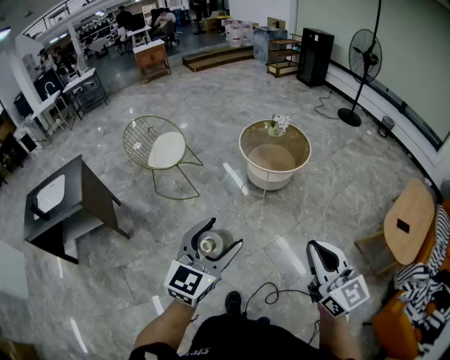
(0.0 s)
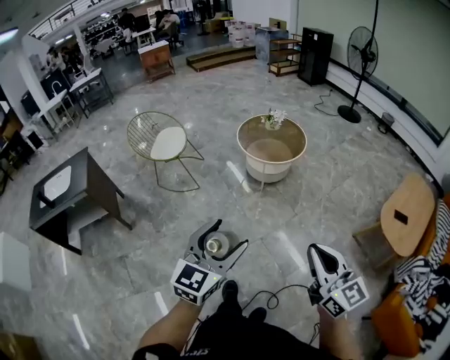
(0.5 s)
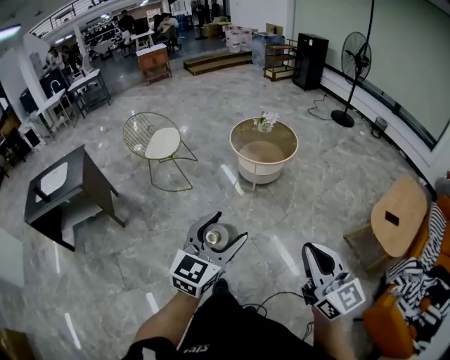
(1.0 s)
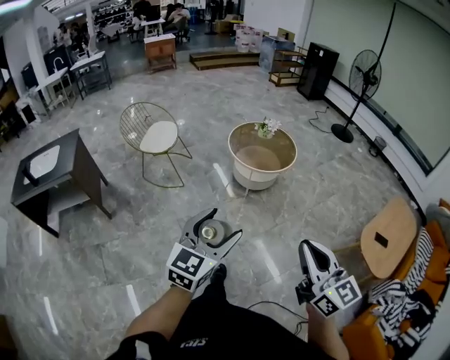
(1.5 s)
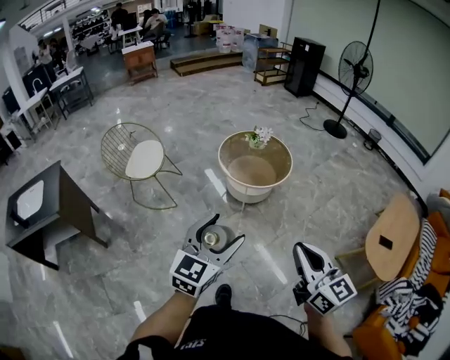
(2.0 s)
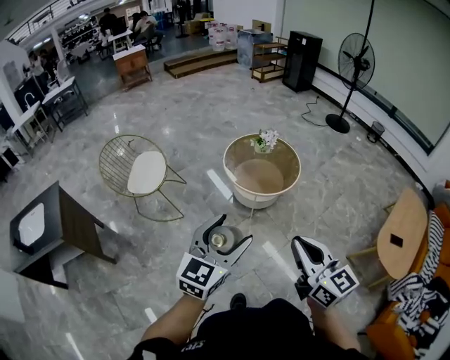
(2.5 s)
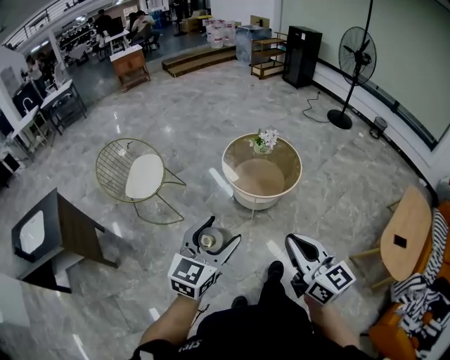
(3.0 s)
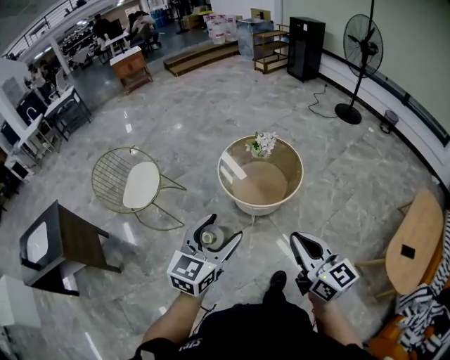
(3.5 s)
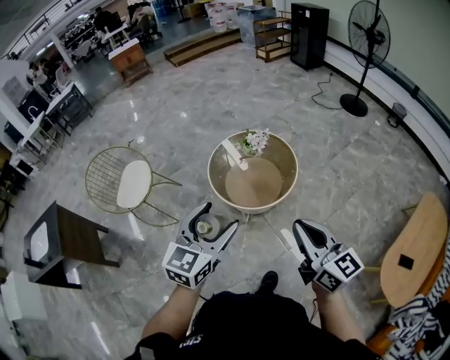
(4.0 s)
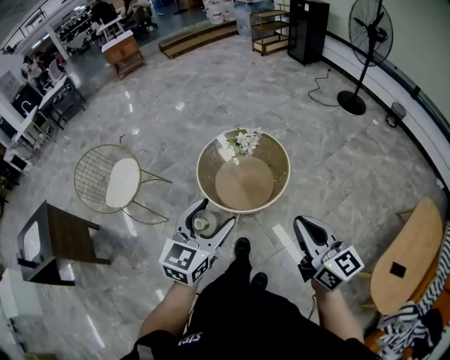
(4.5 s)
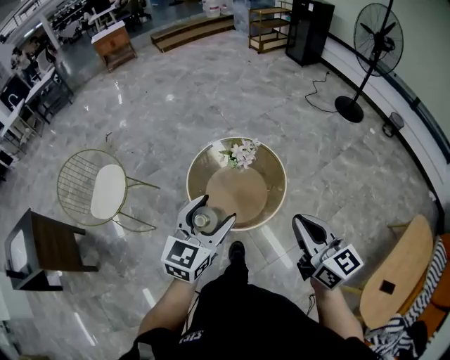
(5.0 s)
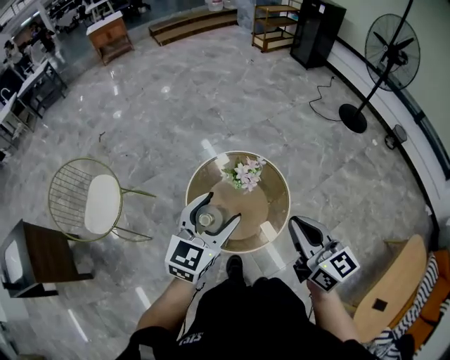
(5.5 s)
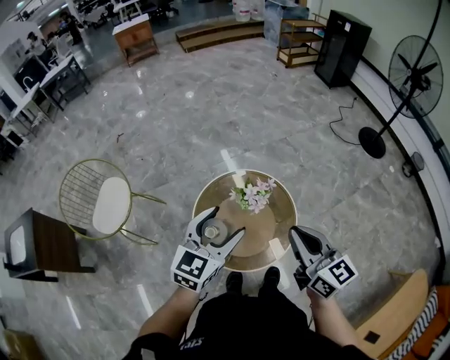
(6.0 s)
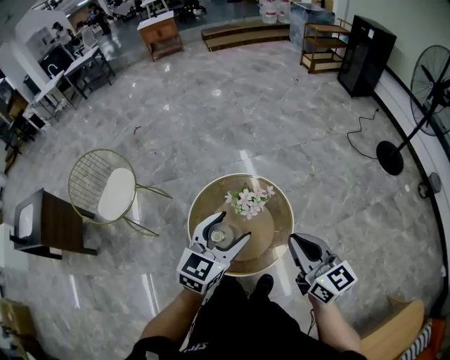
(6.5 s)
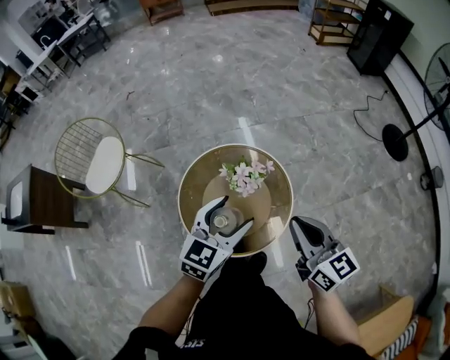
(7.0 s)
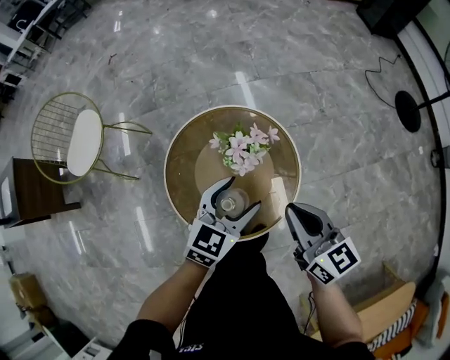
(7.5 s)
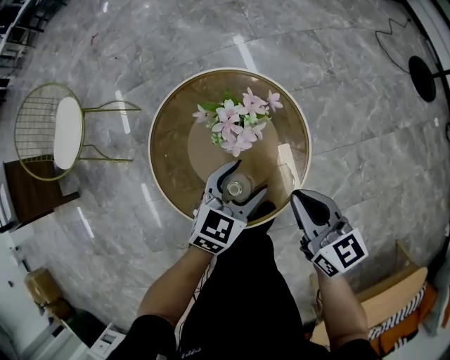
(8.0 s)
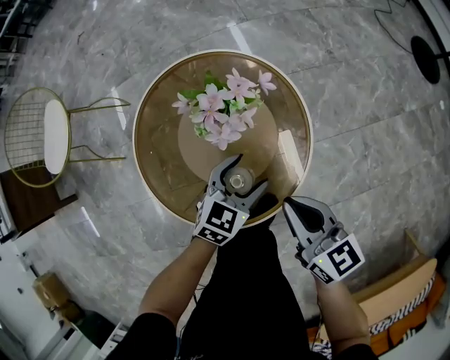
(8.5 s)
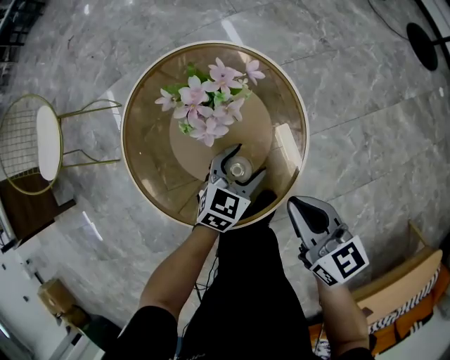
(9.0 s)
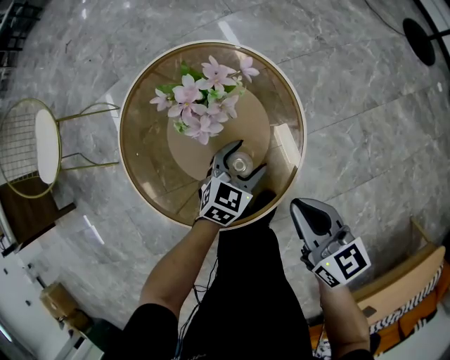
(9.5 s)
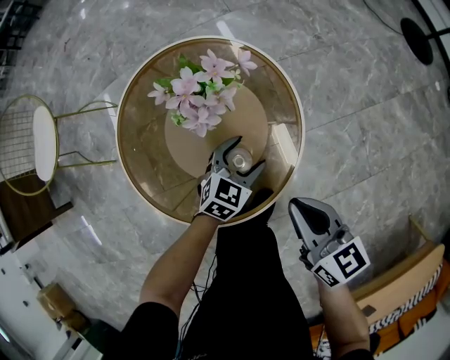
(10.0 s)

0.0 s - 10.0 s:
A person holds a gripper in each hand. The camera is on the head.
0.0 s - 2.0 s: The two grippers go about 10 cm forward and to the right.
2.0 s - 4.0 s: The pair of grippers is taken forward and to the right, approximately 40 cm.
4.0 s - 6.0 s: The pair of grippers is taken forward, some 40 cm.
6.0 s - 8.0 s: The right gripper goes roughly 35 cm downward, and swivels some 20 degrees, while the left gripper moves downward and to the right, approximately 40 cm, and rotates about 20 degrees.
8.0 s - 10.0 s: The left gripper shifts approximately 20 cm downward. The right gripper travels downward and backward by roughly 15 cm.

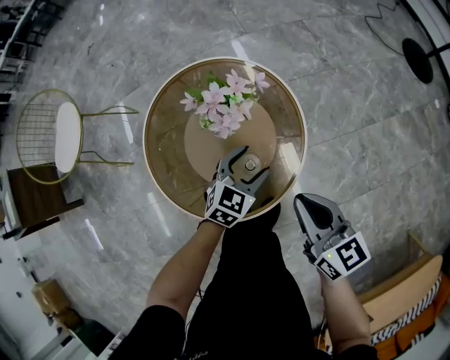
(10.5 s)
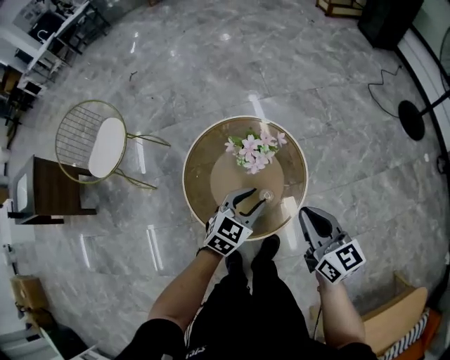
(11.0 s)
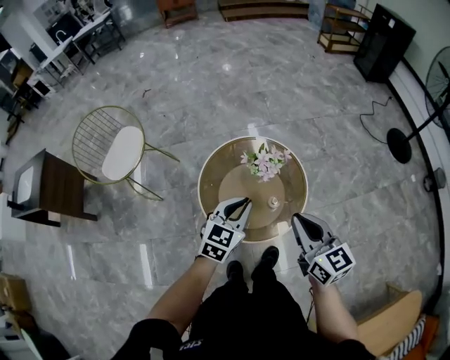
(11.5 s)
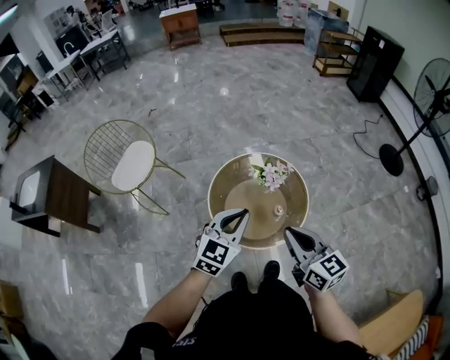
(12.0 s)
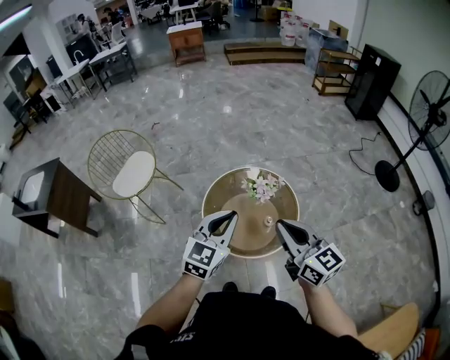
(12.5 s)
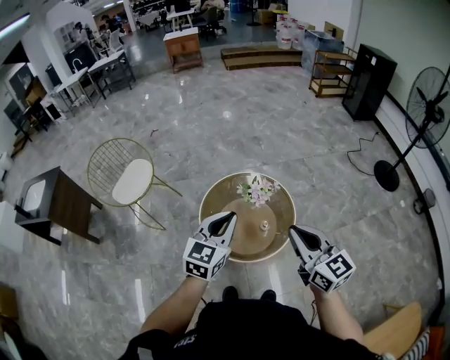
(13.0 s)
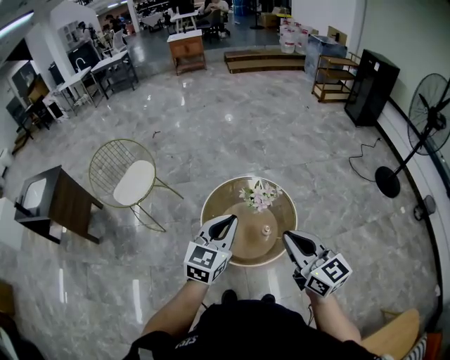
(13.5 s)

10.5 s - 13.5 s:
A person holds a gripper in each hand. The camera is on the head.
10.5 s - 12.0 s: The left gripper heads upward and to the left, covering roughly 50 cm, rotates some 20 degrees, and closes; the right gripper heads upward, to the left and backward, covering roughly 40 cm.
12.0 s - 13.5 s: The left gripper heads upward, covering roughly 5 cm. Meanwhile the right gripper heads upward and to the right, covering some 10 cm.

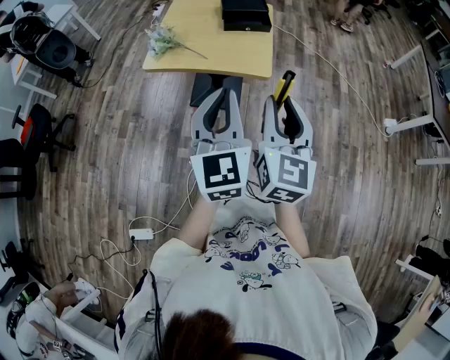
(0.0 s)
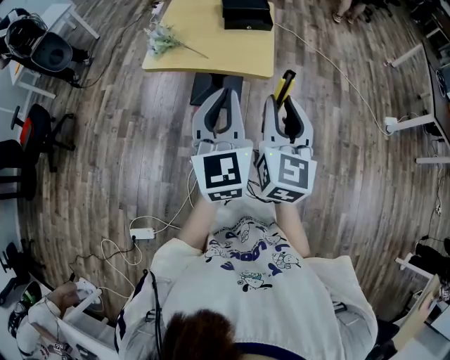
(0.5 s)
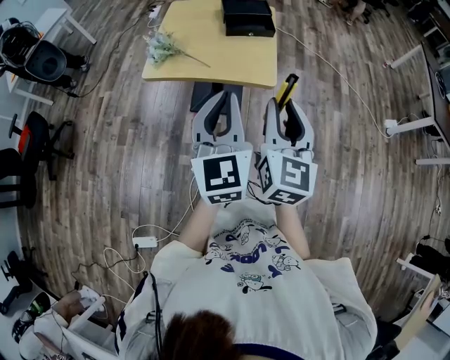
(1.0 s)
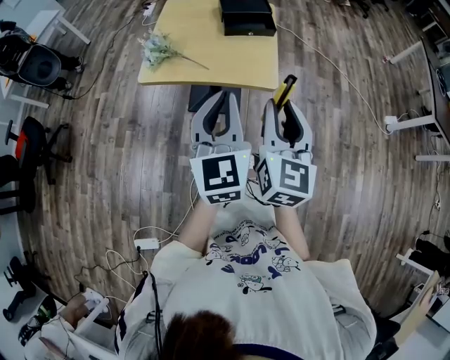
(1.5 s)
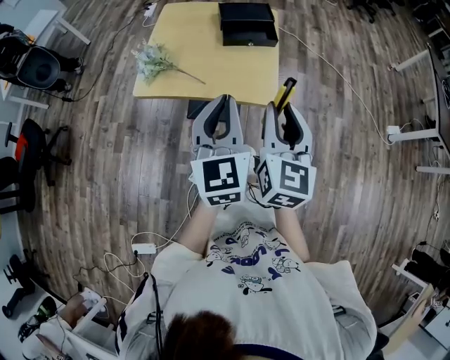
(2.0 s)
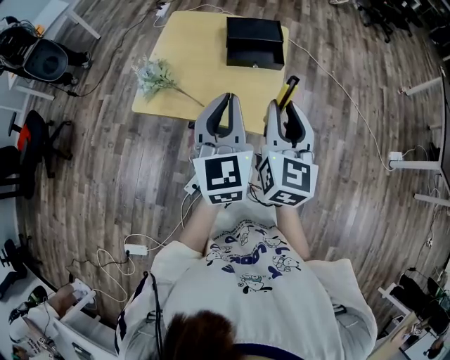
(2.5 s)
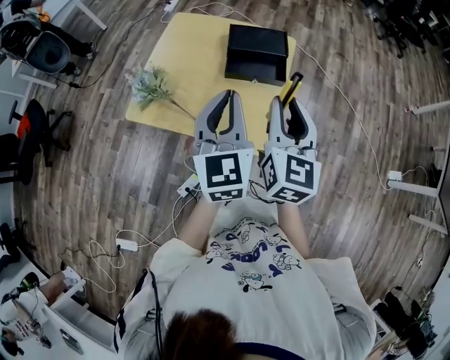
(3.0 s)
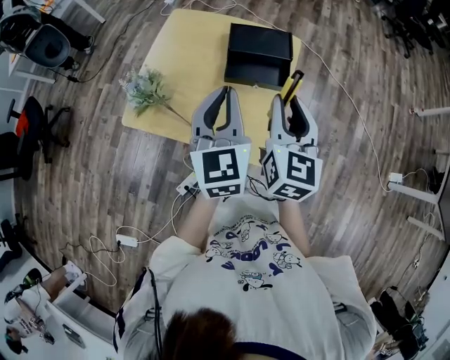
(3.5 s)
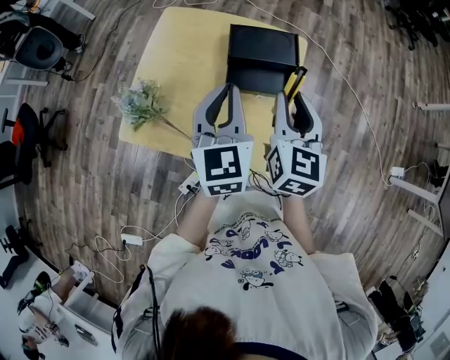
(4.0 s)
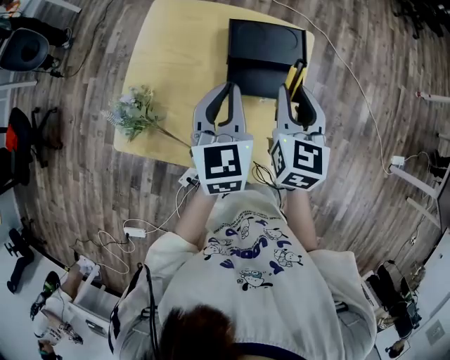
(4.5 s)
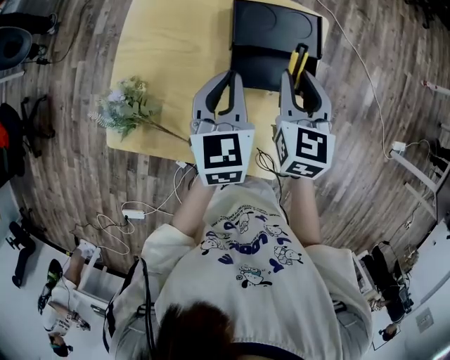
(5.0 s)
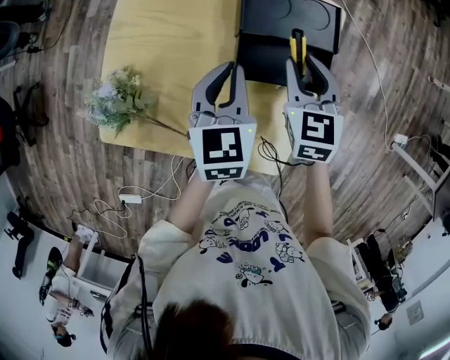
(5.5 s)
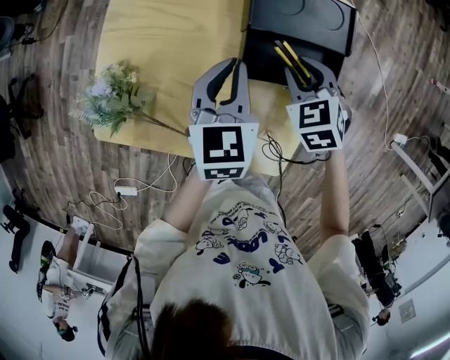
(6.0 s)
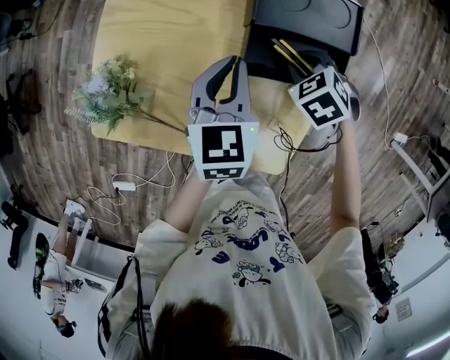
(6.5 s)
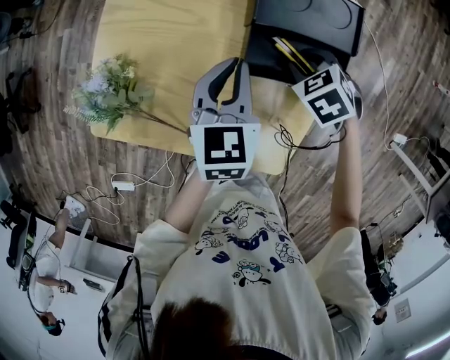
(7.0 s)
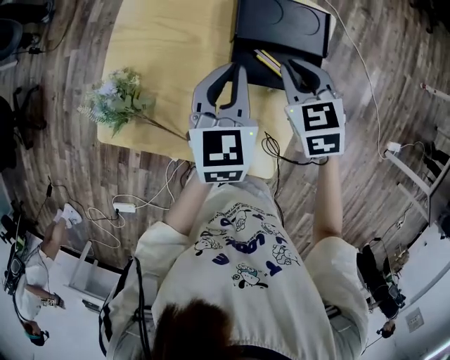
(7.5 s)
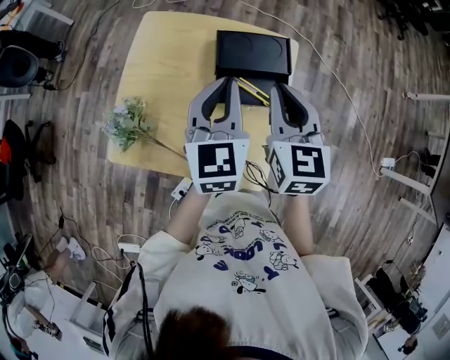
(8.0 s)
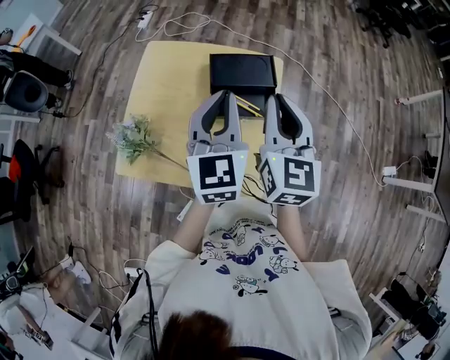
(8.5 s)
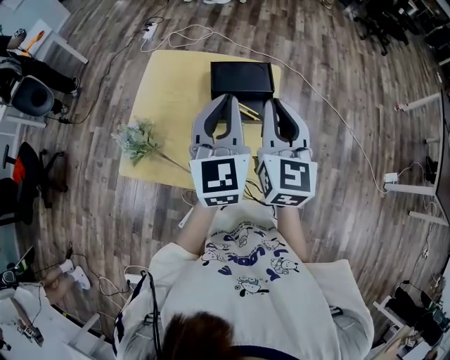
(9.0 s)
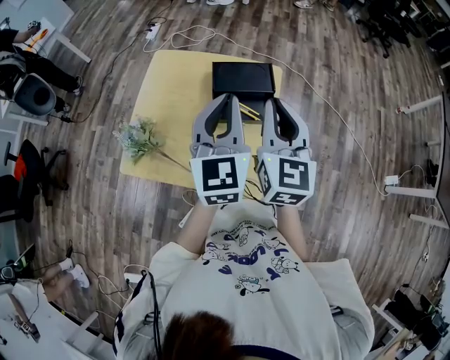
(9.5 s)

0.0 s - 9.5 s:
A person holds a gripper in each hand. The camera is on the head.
0.0 s - 2.0 s: Both grippers travel together forward, approximately 15 cm.
2.0 s - 4.0 s: The two grippers go some 35 cm forward.
4.0 s - 5.5 s: The two grippers go roughly 20 cm downward and forward. The right gripper swivels roughly 30 degrees.
5.5 s - 7.5 s: The right gripper goes downward and returns, roughly 10 cm each way.
7.5 s - 9.5 s: The right gripper travels upward and backward by about 25 cm, and tips its fingers upward by about 40 degrees. The left gripper goes roughly 20 cm upward, and changes its angle by about 30 degrees.

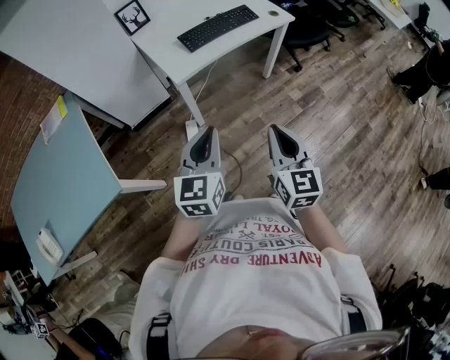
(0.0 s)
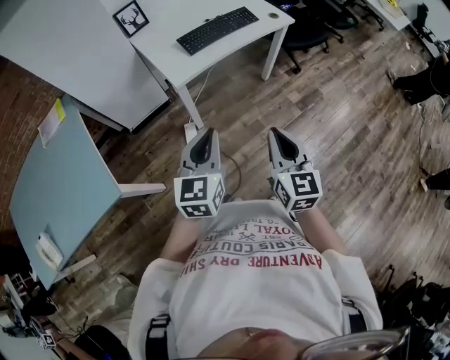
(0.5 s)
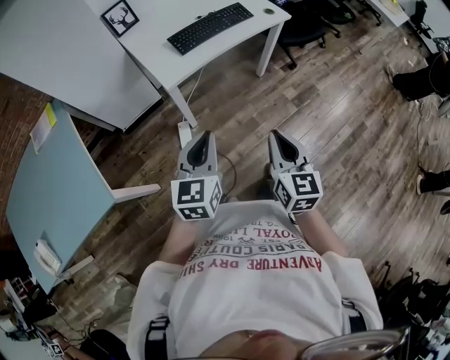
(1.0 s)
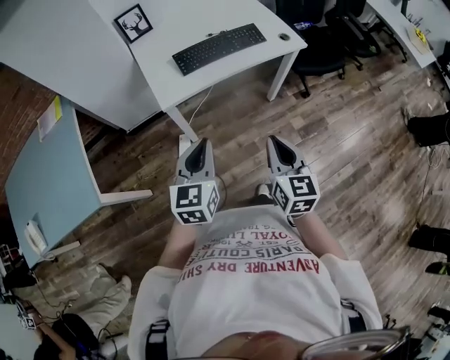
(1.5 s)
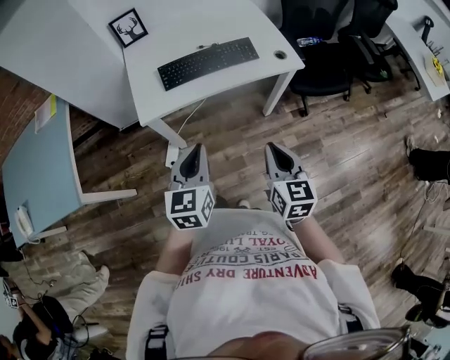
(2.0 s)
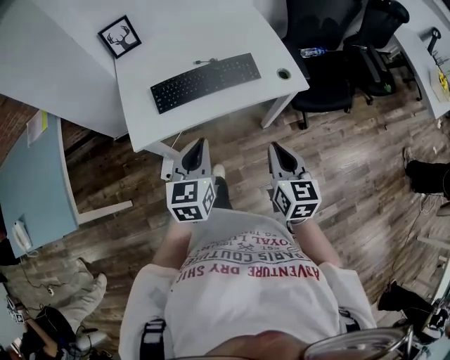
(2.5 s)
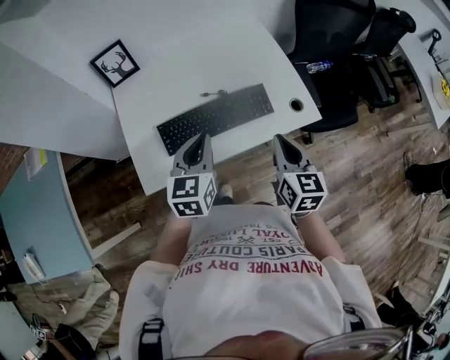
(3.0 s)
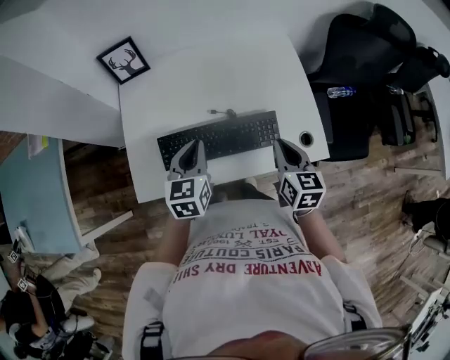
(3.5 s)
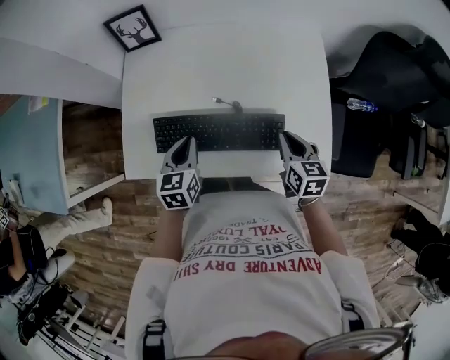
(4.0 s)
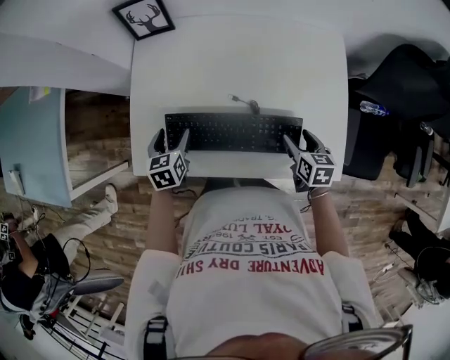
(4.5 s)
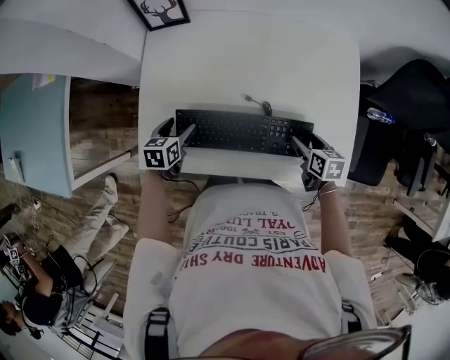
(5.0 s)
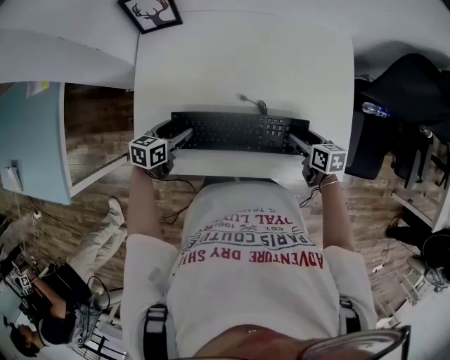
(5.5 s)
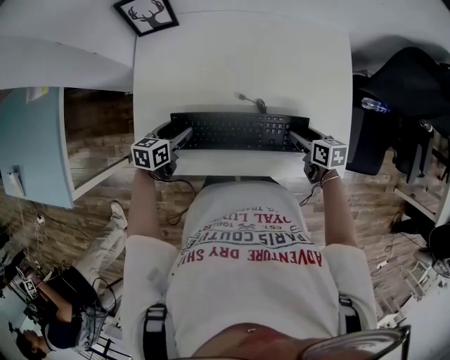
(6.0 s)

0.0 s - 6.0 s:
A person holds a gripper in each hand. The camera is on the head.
0.0 s - 2.0 s: The two grippers go approximately 35 cm forward and to the right. The left gripper swivels about 20 degrees.
2.0 s - 4.0 s: The two grippers travel together, some 50 cm. The right gripper turns by some 30 degrees. Meanwhile the left gripper swivels some 30 degrees.
4.0 s - 6.0 s: The left gripper travels downward and to the left by approximately 15 cm, changes its angle by about 30 degrees, and opens up; the right gripper goes about 10 cm downward, rotates approximately 30 degrees, and opens its fingers.
